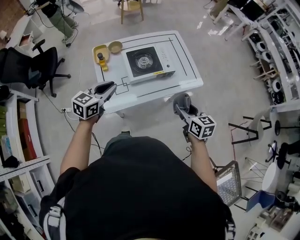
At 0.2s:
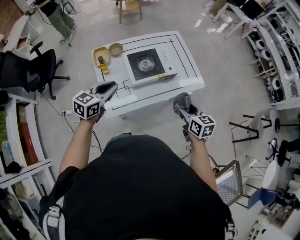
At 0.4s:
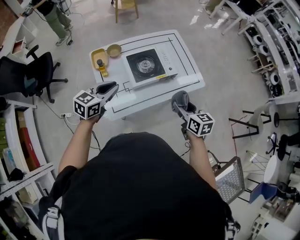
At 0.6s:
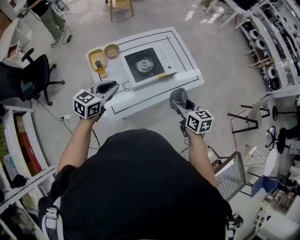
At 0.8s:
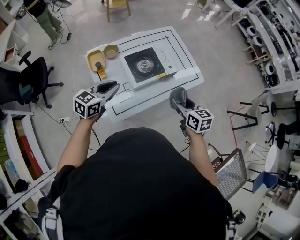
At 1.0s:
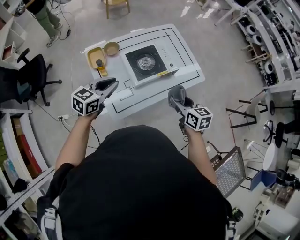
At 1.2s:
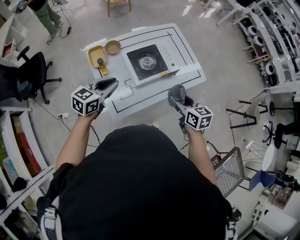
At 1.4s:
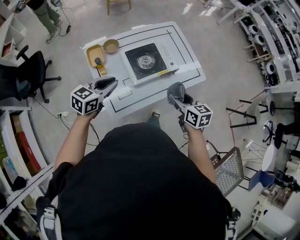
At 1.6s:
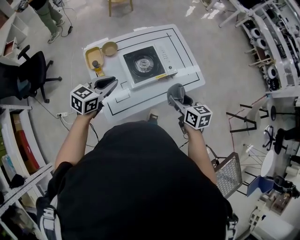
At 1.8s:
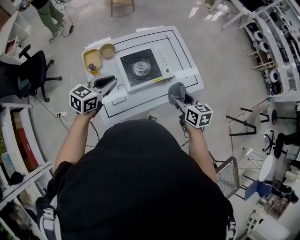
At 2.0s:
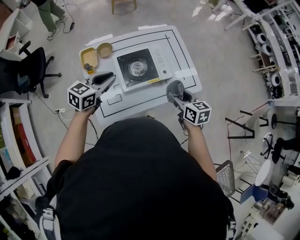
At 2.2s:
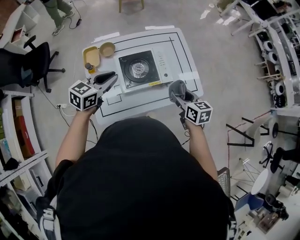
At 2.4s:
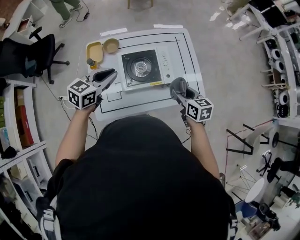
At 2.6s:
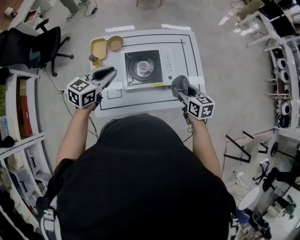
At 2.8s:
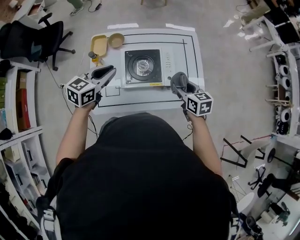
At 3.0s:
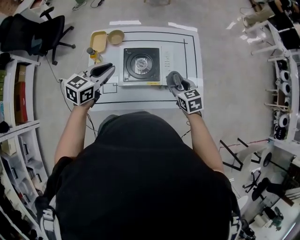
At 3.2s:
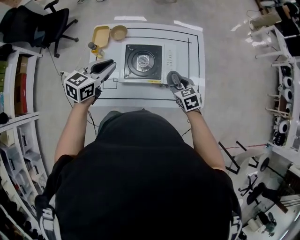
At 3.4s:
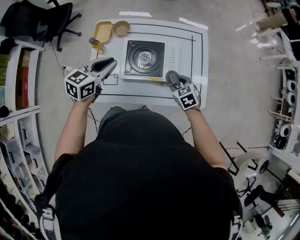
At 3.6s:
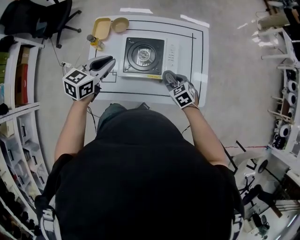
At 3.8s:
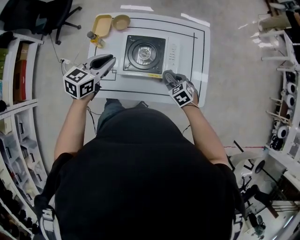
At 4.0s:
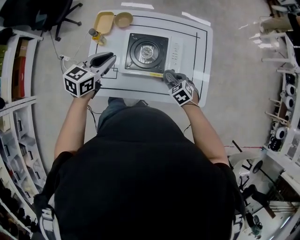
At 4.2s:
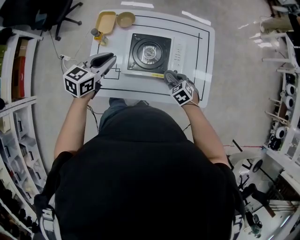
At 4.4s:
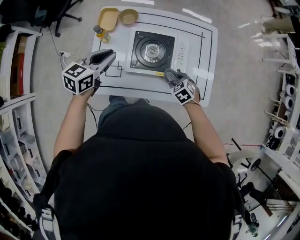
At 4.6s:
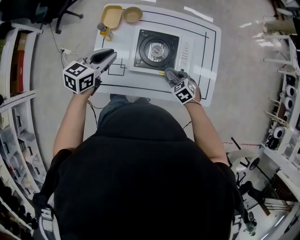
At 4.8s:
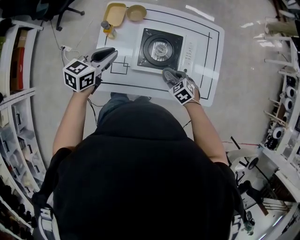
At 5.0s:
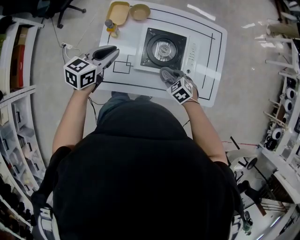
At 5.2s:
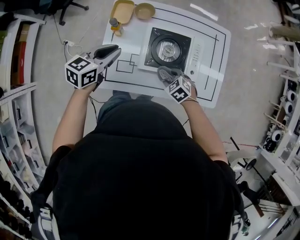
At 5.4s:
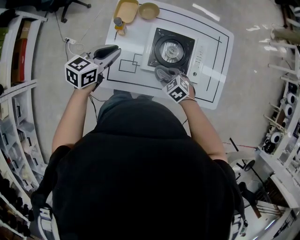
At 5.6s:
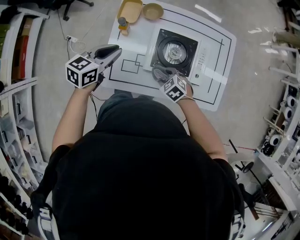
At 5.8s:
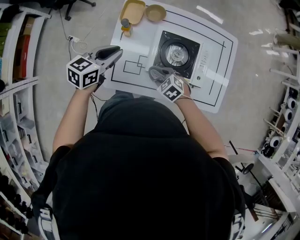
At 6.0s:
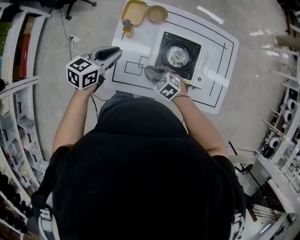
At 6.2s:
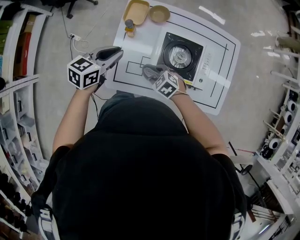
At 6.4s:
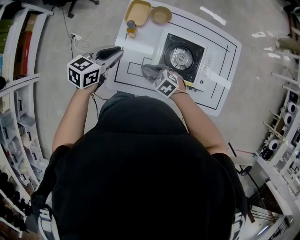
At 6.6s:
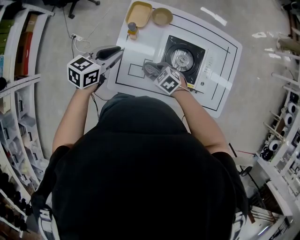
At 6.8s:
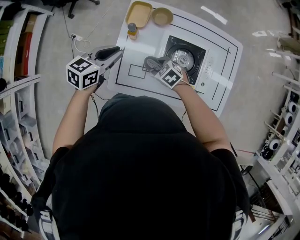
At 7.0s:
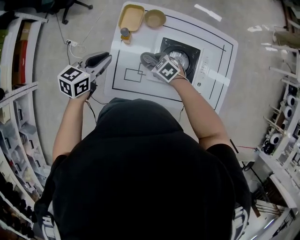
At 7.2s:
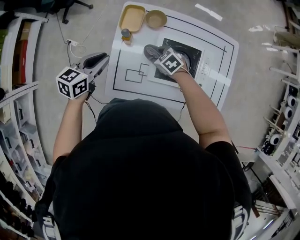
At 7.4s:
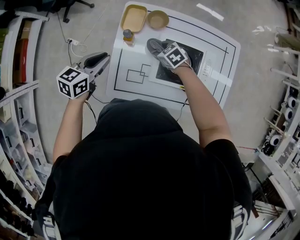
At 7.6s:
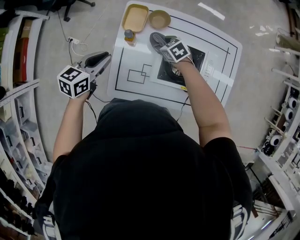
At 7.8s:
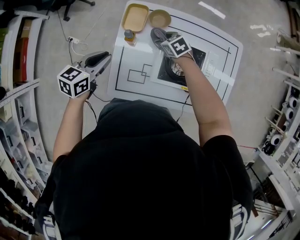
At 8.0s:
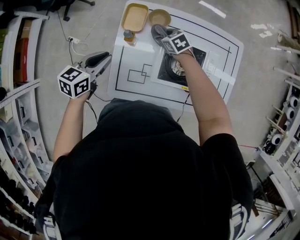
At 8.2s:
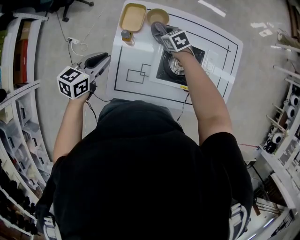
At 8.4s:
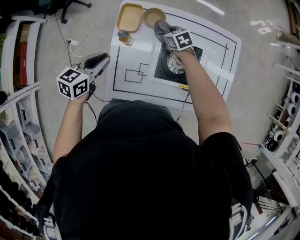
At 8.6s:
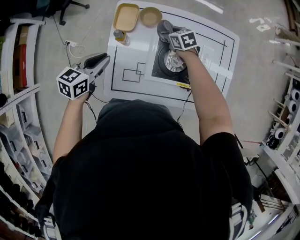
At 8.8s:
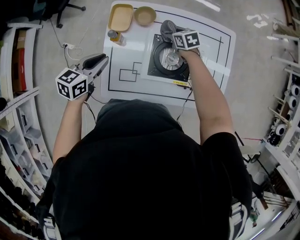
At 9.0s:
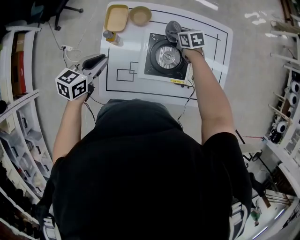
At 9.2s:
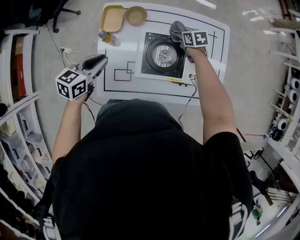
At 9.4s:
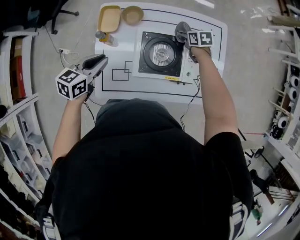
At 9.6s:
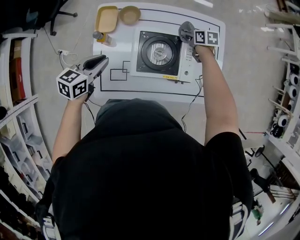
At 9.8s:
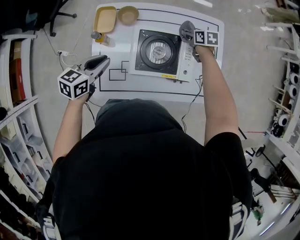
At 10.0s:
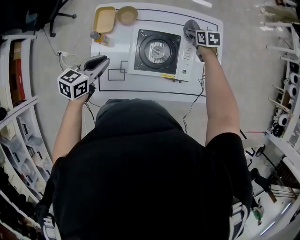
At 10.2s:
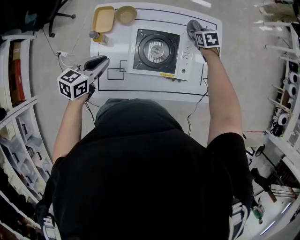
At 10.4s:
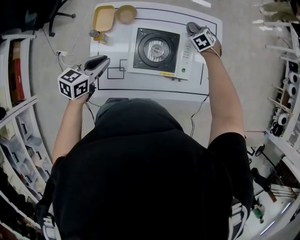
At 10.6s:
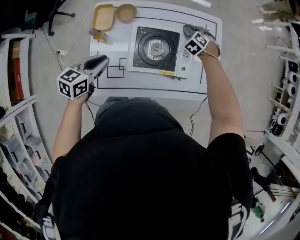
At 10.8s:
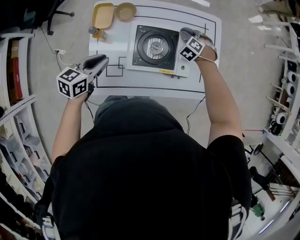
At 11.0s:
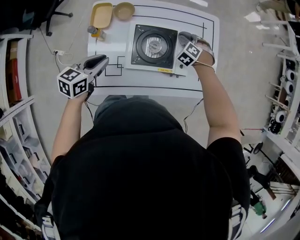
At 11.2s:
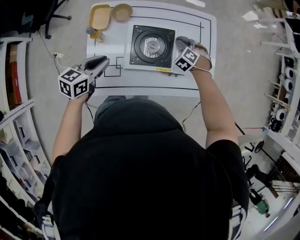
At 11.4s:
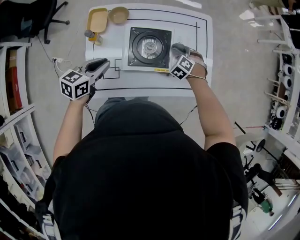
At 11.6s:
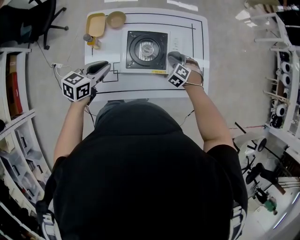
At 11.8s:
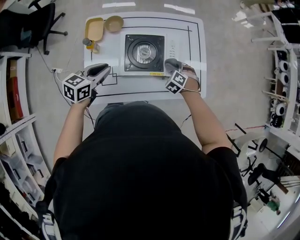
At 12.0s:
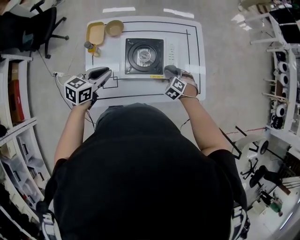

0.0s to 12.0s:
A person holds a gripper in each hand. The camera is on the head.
0.0s to 1.6s: Both grippers travel together forward and to the left, some 15 cm.
1.6s to 3.0s: The right gripper shifts about 25 cm forward, to the right and downward, and rotates roughly 40 degrees. Meanwhile the left gripper travels to the right and forward by about 15 cm, and changes its angle by approximately 20 degrees.
3.0s to 4.4s: The right gripper travels downward by some 15 cm, and rotates approximately 30 degrees. Meanwhile the left gripper shifts roughly 5 cm downward.
4.4s to 6.0s: The right gripper is displaced to the left by some 25 cm, and swivels roughly 20 degrees. The left gripper goes roughly 10 cm to the left.
6.0s to 7.6s: The left gripper changes place by roughly 10 cm, while the right gripper shifts by about 20 cm.
7.6s to 9.0s: The left gripper goes roughly 5 cm to the right, while the right gripper moves to the right, about 15 cm, and swivels about 30 degrees.
9.0s to 10.4s: The right gripper moves some 20 cm, and turns by some 40 degrees; the left gripper changes place by approximately 5 cm.
10.4s to 12.0s: The right gripper moves backward and to the right, about 25 cm. The left gripper moves to the right, about 5 cm.

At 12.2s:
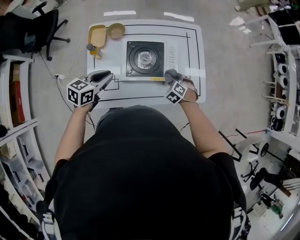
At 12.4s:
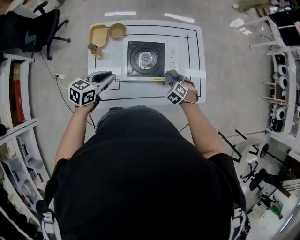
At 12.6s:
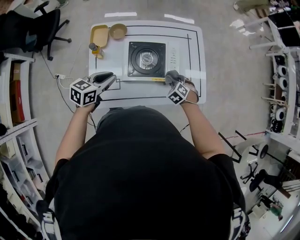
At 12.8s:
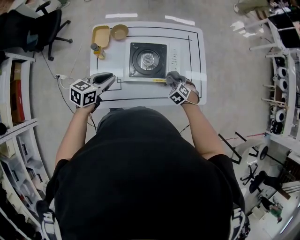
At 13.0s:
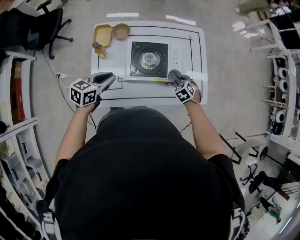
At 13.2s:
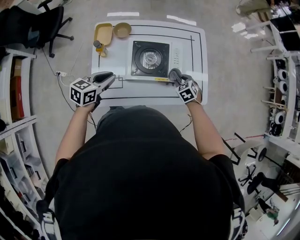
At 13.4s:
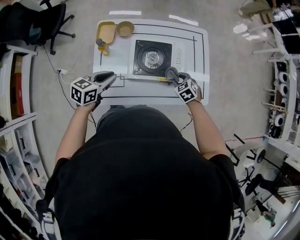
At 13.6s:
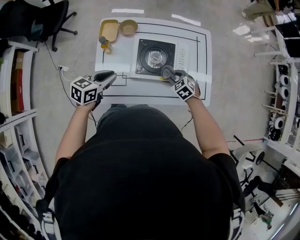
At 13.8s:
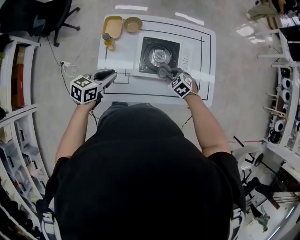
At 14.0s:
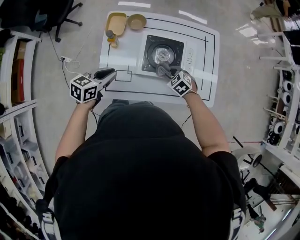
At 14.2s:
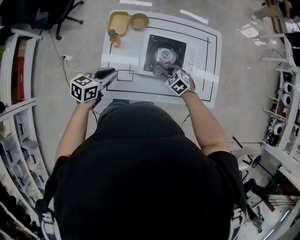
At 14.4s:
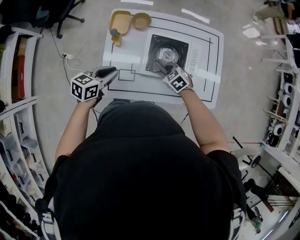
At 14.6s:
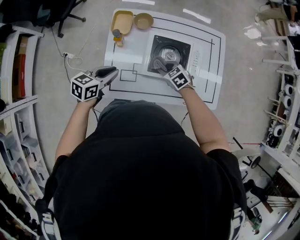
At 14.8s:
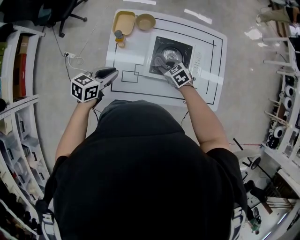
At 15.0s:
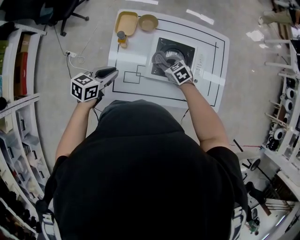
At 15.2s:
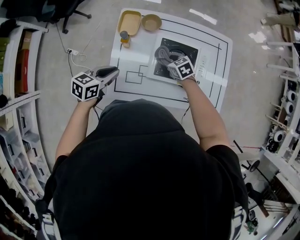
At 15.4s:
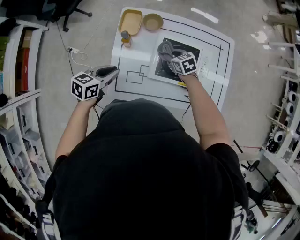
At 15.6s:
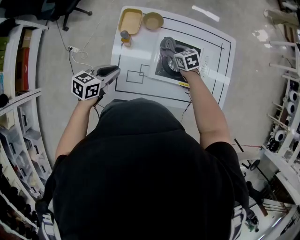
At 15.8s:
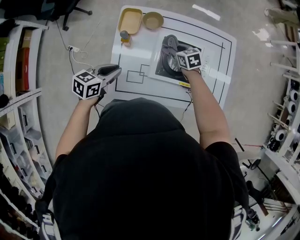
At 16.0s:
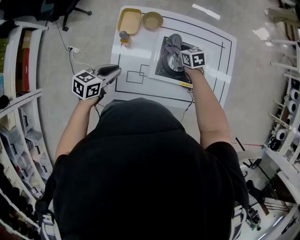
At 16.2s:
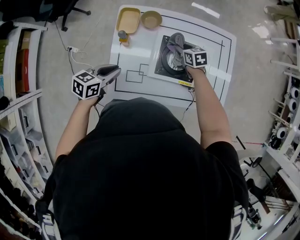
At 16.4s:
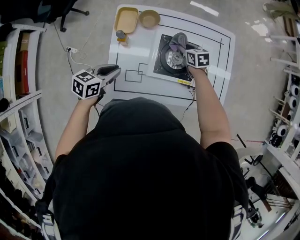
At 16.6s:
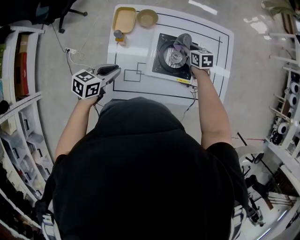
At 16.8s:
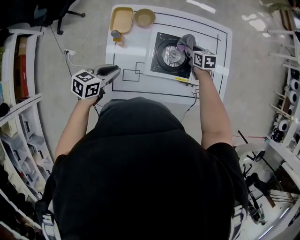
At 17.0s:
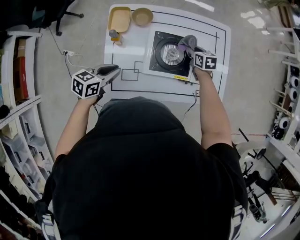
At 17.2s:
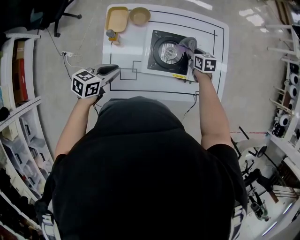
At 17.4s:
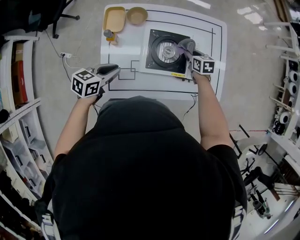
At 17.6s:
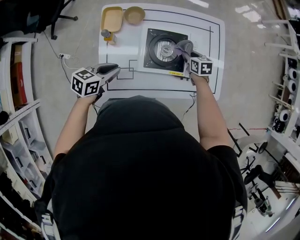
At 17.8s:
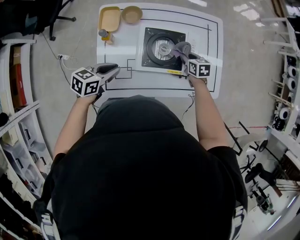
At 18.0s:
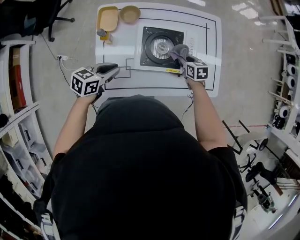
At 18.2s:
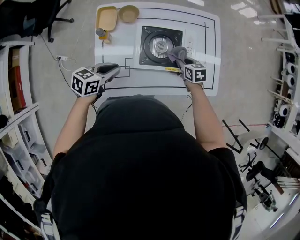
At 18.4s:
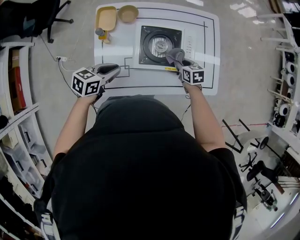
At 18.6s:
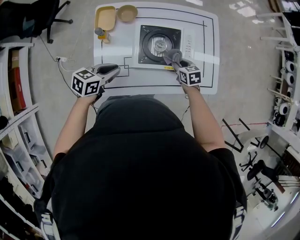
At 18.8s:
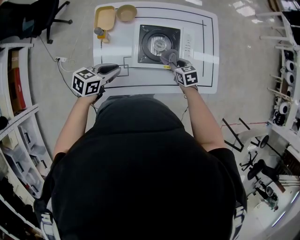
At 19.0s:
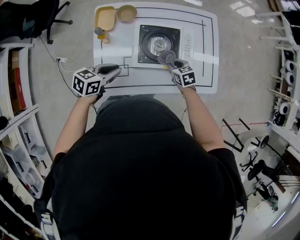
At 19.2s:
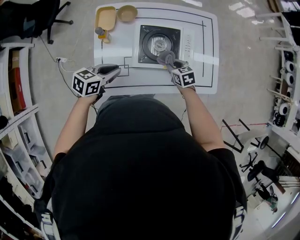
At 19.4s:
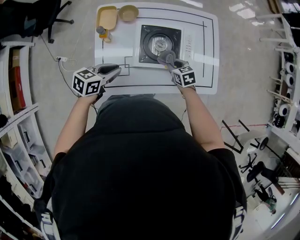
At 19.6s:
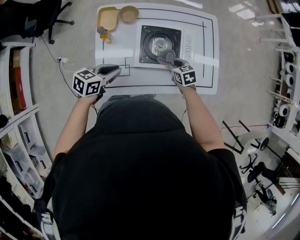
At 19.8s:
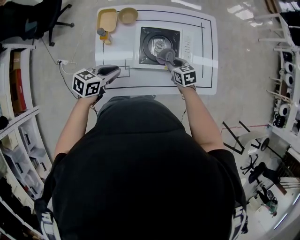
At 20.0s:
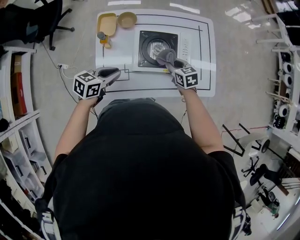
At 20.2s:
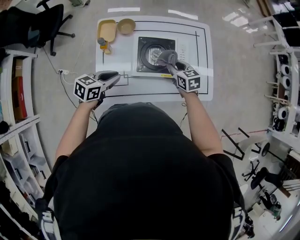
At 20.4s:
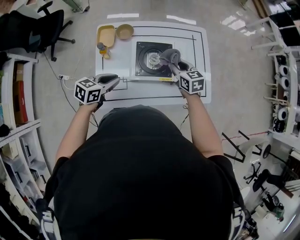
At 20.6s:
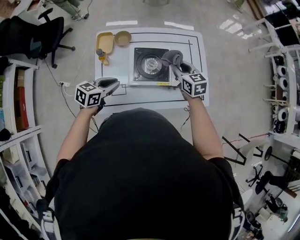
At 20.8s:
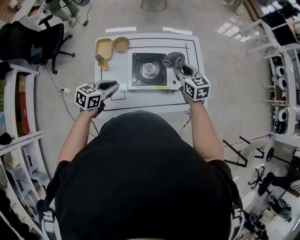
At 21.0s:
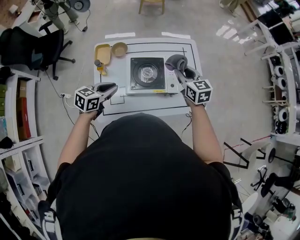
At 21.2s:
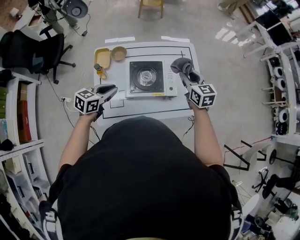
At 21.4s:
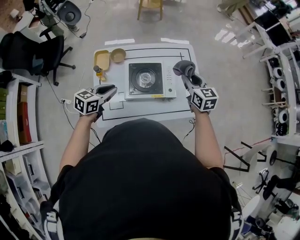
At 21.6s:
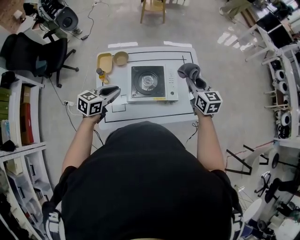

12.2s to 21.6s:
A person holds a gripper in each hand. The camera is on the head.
12.2s to 13.8s: The left gripper ends up roughly 5 cm from where it was; the right gripper moves roughly 10 cm, and rotates some 20 degrees.
13.8s to 15.4s: The left gripper moves to the left, about 10 cm; the right gripper moves forward and to the left, some 20 cm, and turns by about 30 degrees.
15.4s to 17.0s: The right gripper heads to the right, covering about 15 cm, and swivels some 30 degrees.
17.0s to 18.4s: The right gripper travels backward by roughly 10 cm. The left gripper moves to the right, roughly 5 cm.
18.4s to 20.0s: The right gripper heads upward, covering some 5 cm.
20.0s to 21.6s: The right gripper goes about 25 cm upward and to the right, and rotates some 30 degrees. The left gripper shifts about 10 cm upward and to the right.

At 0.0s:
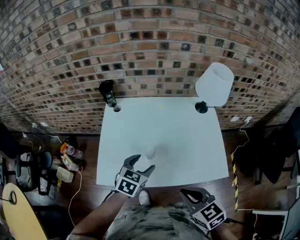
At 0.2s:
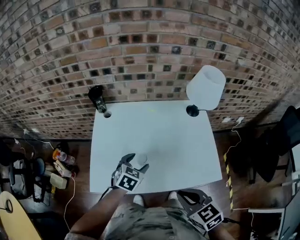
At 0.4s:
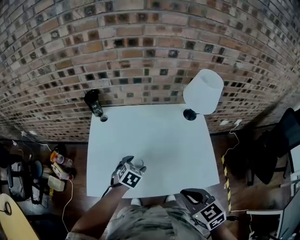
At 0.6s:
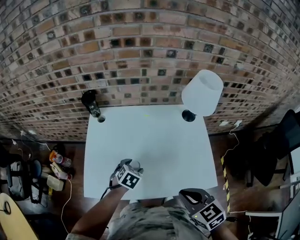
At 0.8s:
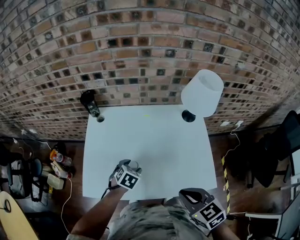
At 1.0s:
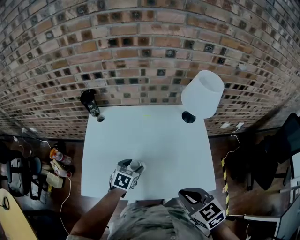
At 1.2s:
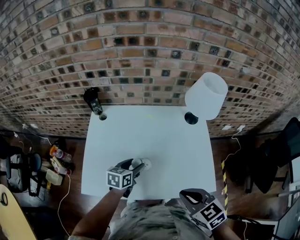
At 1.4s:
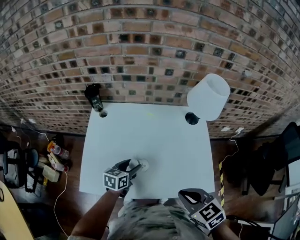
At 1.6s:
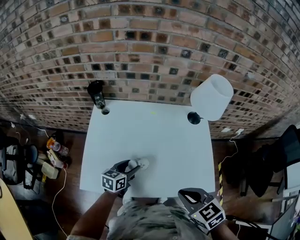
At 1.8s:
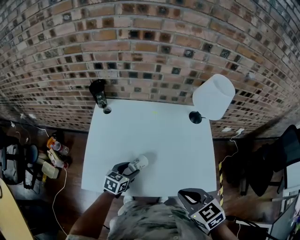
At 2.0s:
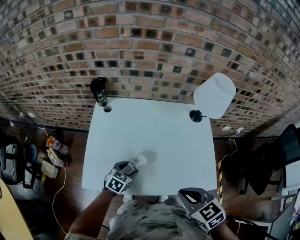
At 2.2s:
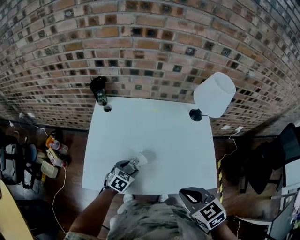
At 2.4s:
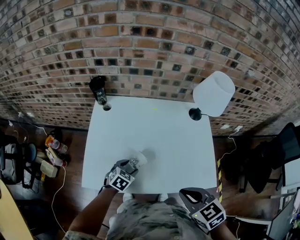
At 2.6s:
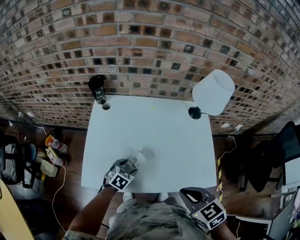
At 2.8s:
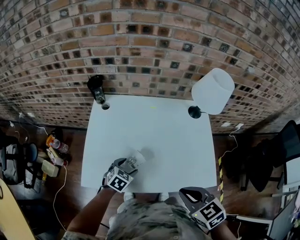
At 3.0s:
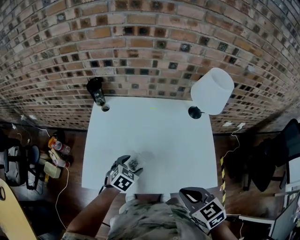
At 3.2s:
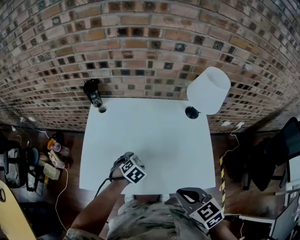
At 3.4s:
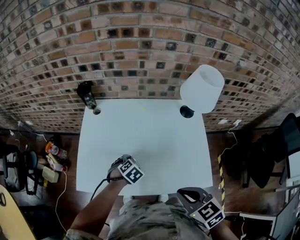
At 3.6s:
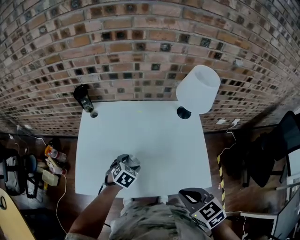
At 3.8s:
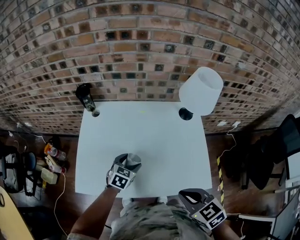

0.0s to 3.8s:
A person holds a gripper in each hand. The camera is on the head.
0.0s to 1.2s: The left gripper travels forward and downward by roughly 10 cm, and rotates about 30 degrees. Meanwhile the right gripper is displaced to the right and forward by some 10 cm.
1.2s to 2.6s: The left gripper heads downward, to the left and backward, covering approximately 15 cm, and turns by some 30 degrees.
2.6s to 3.8s: The right gripper goes roughly 5 cm to the right; the left gripper is displaced to the right, forward and upward by roughly 10 cm.
